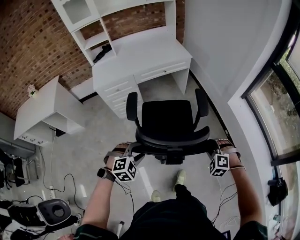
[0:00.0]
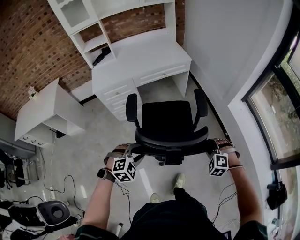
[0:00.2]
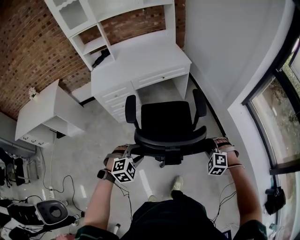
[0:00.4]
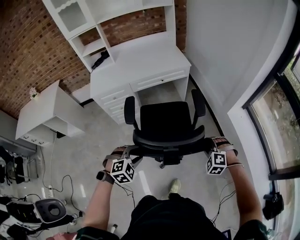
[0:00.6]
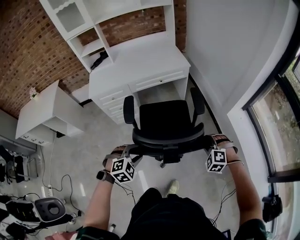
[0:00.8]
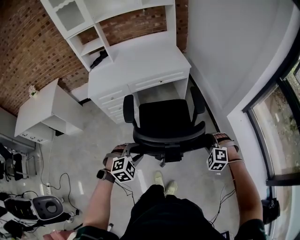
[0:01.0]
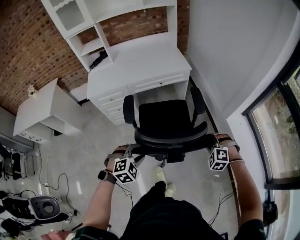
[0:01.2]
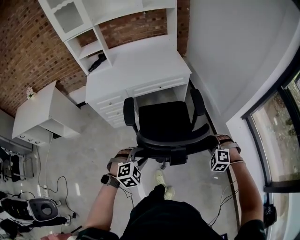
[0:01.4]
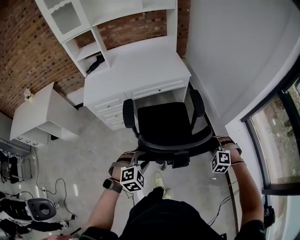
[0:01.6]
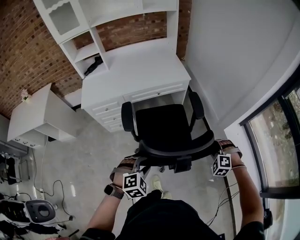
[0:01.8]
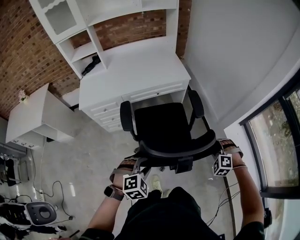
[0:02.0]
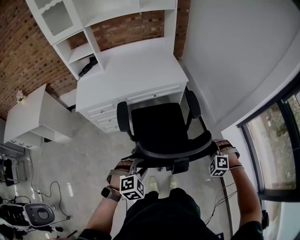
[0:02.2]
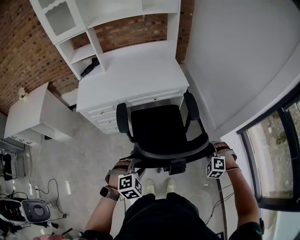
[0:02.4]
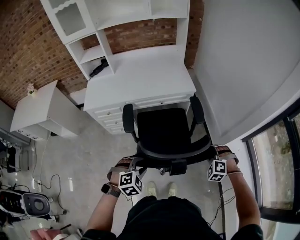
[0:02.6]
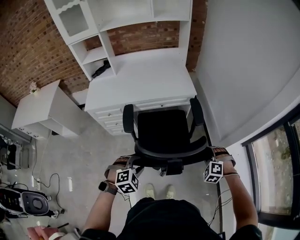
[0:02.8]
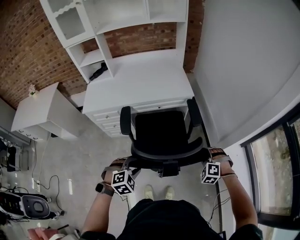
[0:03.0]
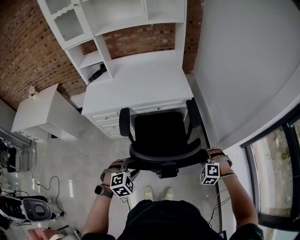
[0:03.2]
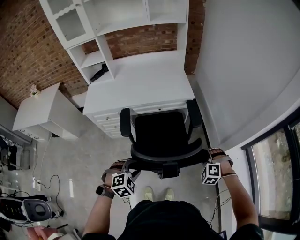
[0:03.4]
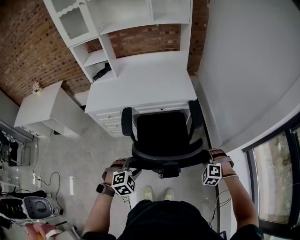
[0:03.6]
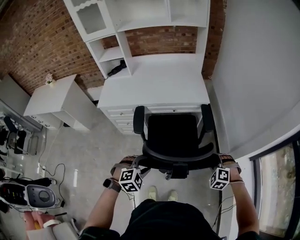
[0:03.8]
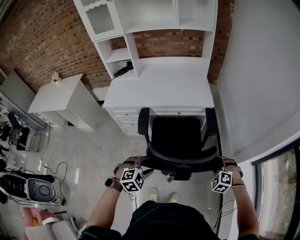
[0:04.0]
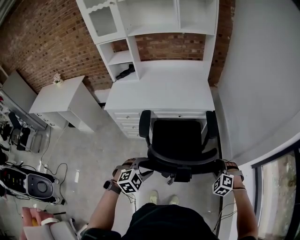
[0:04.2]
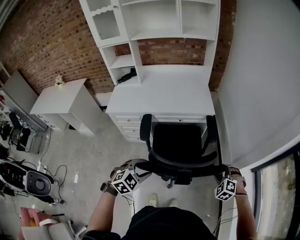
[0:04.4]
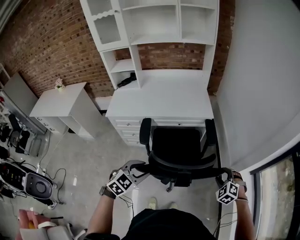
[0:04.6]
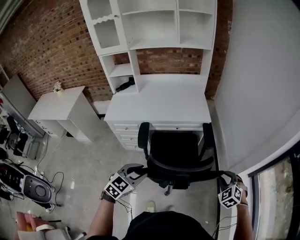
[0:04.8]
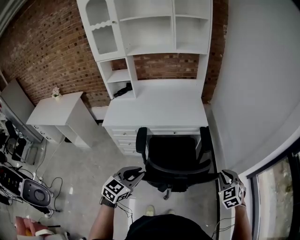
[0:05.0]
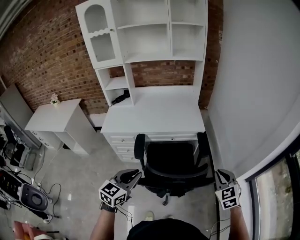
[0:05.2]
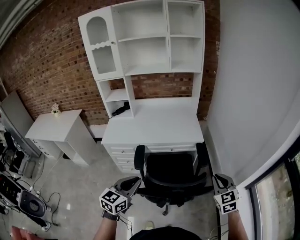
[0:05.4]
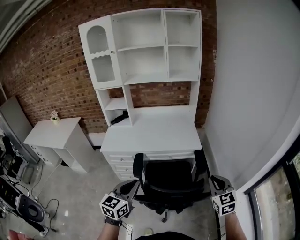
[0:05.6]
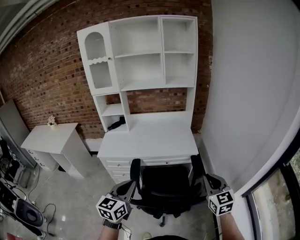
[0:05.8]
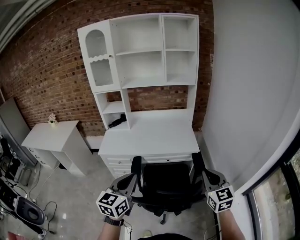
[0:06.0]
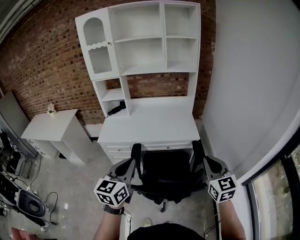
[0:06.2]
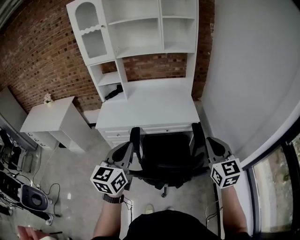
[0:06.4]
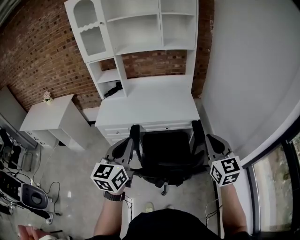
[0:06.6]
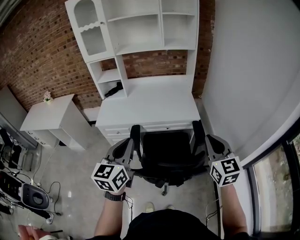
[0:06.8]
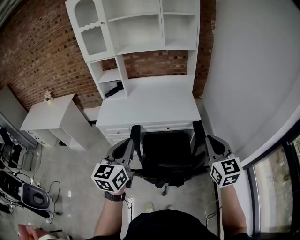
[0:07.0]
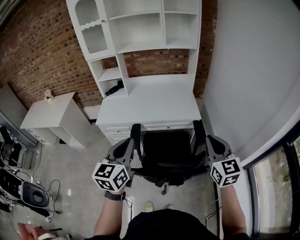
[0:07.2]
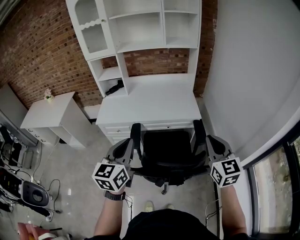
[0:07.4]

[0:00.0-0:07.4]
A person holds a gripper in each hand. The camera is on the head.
0:00.0 to 0:01.4: The left gripper heads forward and to the right, covering roughly 20 cm, while the right gripper heads forward, covering approximately 25 cm.
0:01.4 to 0:03.0: Both grippers move forward, roughly 15 cm.
0:03.0 to 0:04.4: The left gripper shifts approximately 5 cm upward.
0:04.4 to 0:06.0: The two grippers go approximately 25 cm upward. The right gripper points its fingers approximately 40 degrees further upward, and closes, while the left gripper points its fingers about 40 degrees further upward, and closes up.
0:06.0 to 0:07.4: The grippers make only small movements.

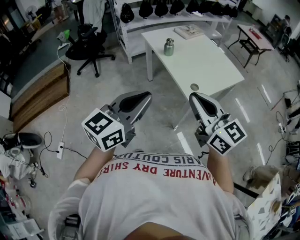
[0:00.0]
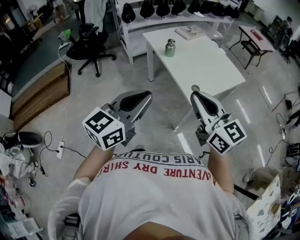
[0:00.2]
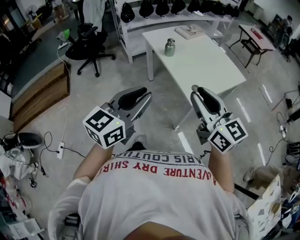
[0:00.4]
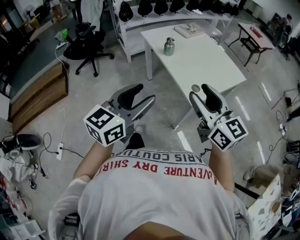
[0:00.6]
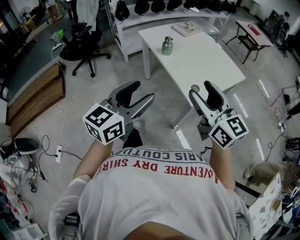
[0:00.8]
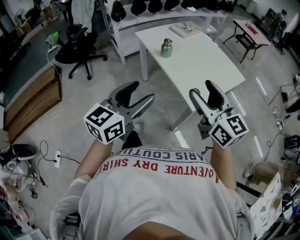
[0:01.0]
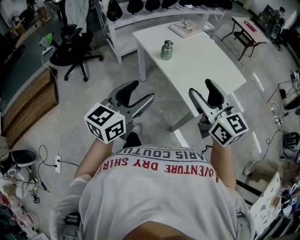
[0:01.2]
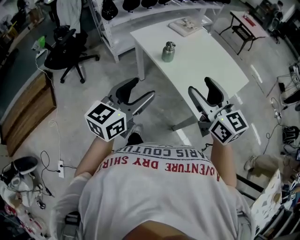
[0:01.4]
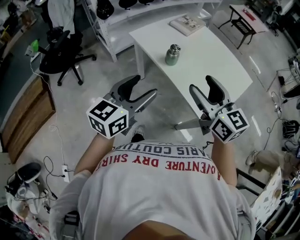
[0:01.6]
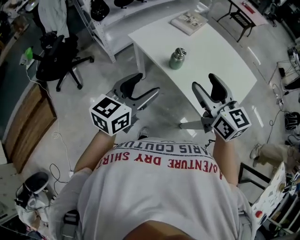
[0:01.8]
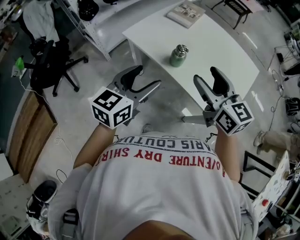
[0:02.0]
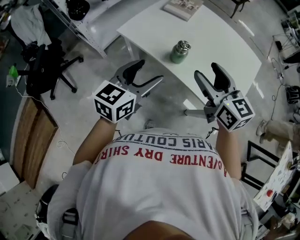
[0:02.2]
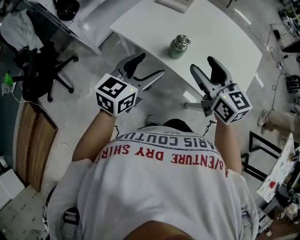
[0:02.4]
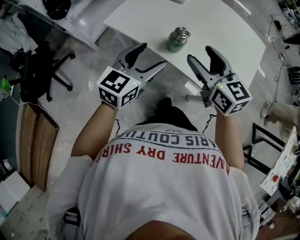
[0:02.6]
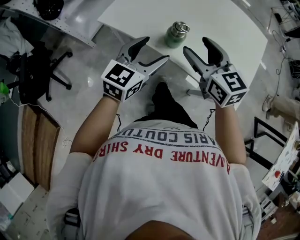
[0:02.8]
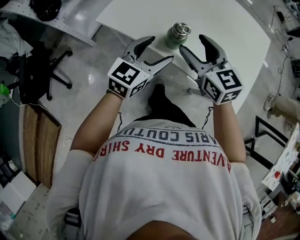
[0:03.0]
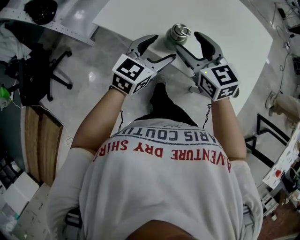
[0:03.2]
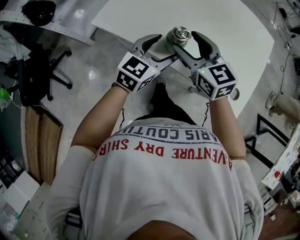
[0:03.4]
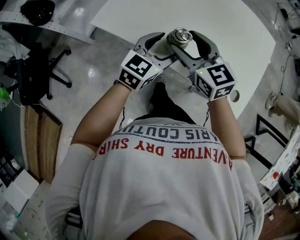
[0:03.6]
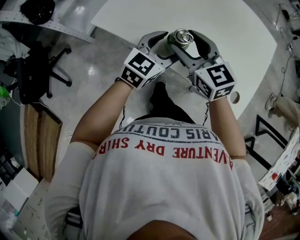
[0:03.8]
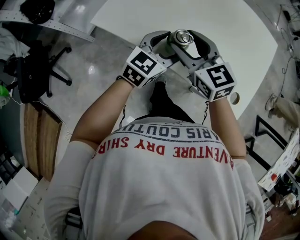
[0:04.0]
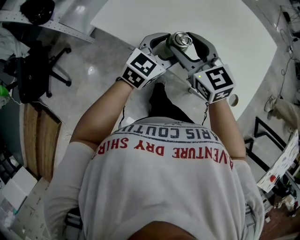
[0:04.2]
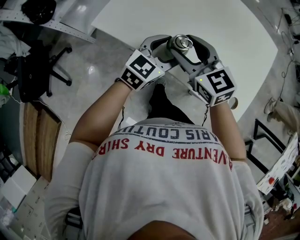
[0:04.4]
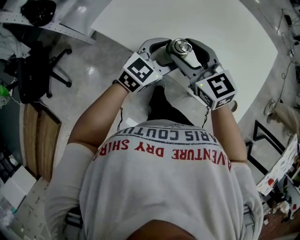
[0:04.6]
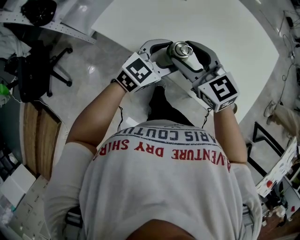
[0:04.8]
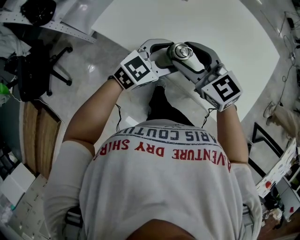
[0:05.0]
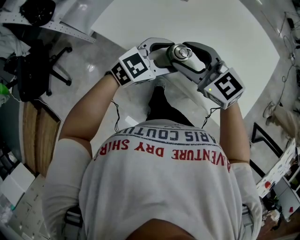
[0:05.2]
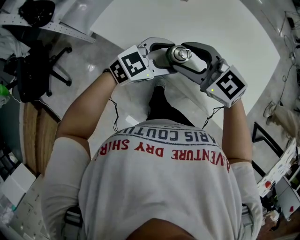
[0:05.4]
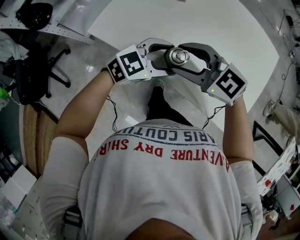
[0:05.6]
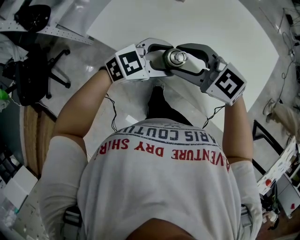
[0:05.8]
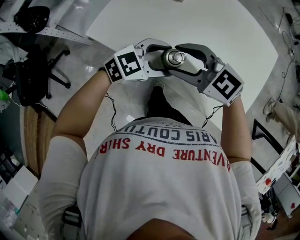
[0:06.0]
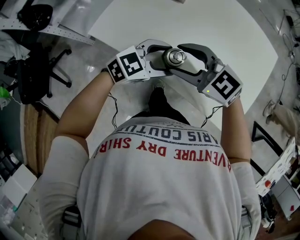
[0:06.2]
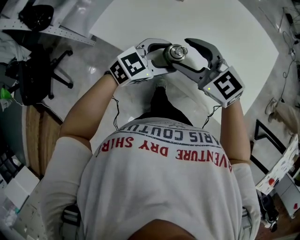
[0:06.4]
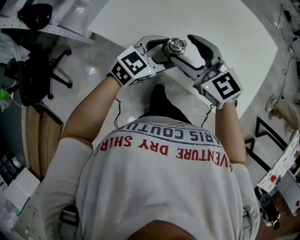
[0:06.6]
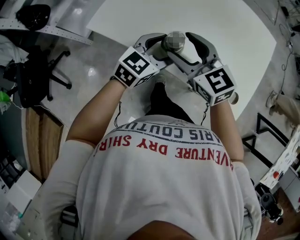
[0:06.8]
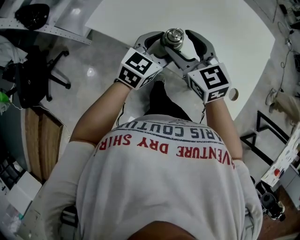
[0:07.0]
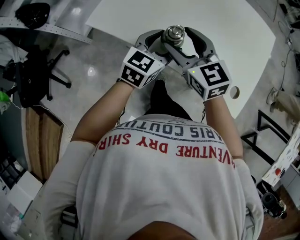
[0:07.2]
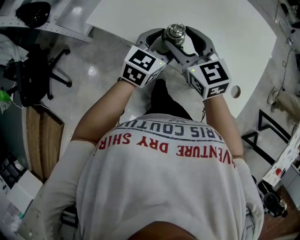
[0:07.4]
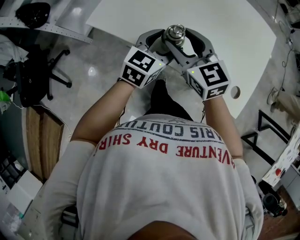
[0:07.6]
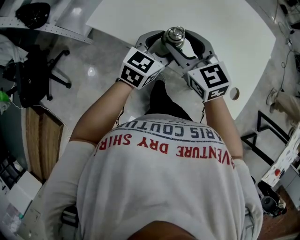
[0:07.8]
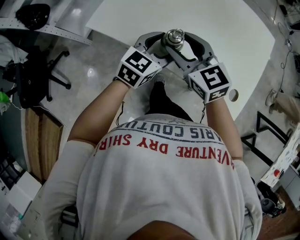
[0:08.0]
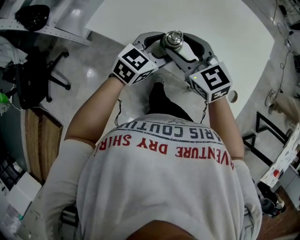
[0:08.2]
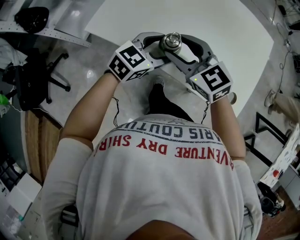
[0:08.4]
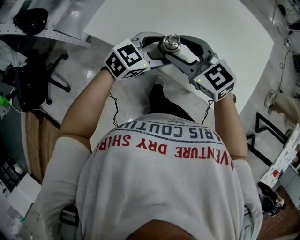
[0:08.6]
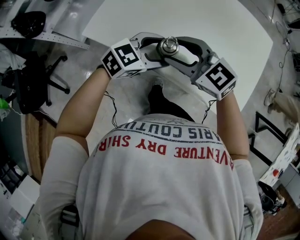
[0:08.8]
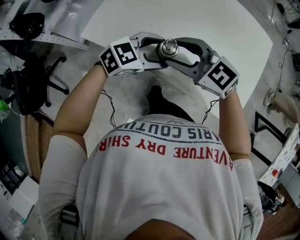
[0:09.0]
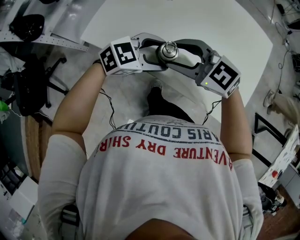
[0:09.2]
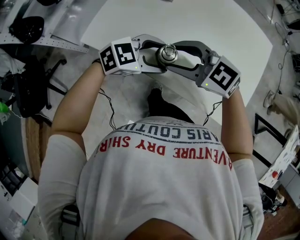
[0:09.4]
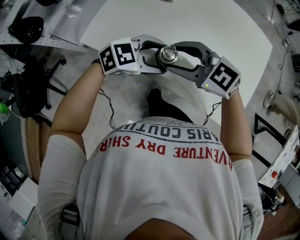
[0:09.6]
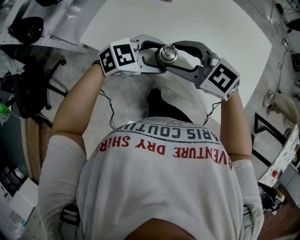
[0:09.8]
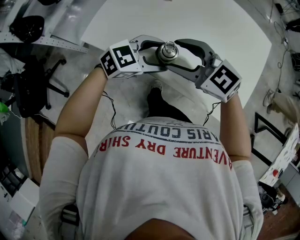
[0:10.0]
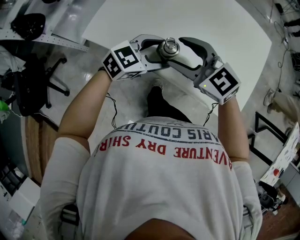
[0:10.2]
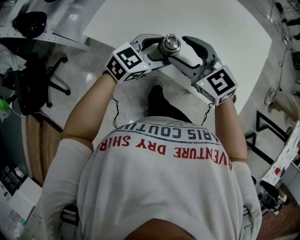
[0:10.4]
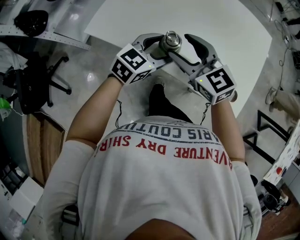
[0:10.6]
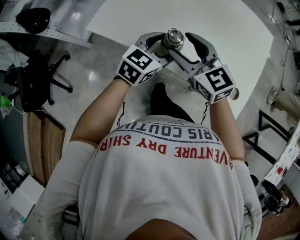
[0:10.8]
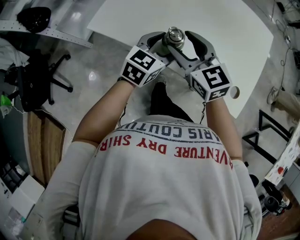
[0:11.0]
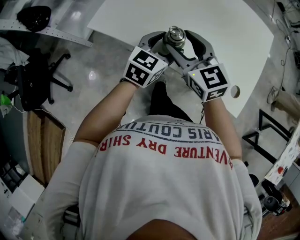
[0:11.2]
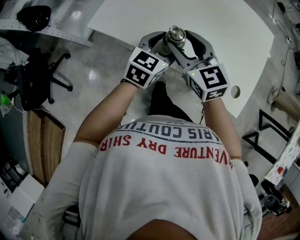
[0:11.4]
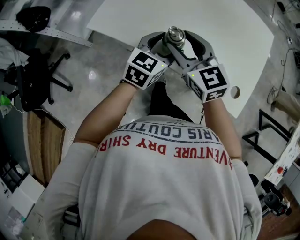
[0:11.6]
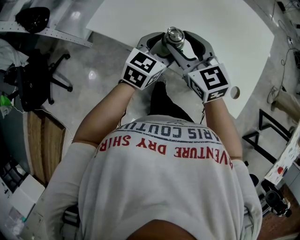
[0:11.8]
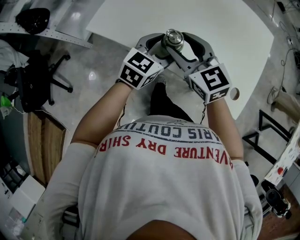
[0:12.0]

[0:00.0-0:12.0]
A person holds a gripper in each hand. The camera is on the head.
0:00.0 to 0:01.6: Both grippers travel together forward, some 30 cm. The left gripper opens, while the right gripper rotates approximately 20 degrees, and opens up.
0:01.6 to 0:03.0: The left gripper is displaced forward and downward by about 30 cm, and changes its angle by approximately 30 degrees, while the right gripper shifts roughly 25 cm forward, downward and to the left, and turns by roughly 20 degrees.
0:03.0 to 0:04.4: The left gripper is displaced forward by roughly 5 cm, while the right gripper shifts by about 5 cm.
0:04.4 to 0:06.0: The left gripper rotates approximately 30 degrees. The right gripper rotates about 30 degrees.
0:06.0 to 0:07.6: The right gripper rotates roughly 40 degrees, while the left gripper swivels roughly 30 degrees.
0:07.6 to 0:09.0: The right gripper changes its angle by about 30 degrees. Meanwhile the left gripper swivels roughly 40 degrees.
0:09.0 to 0:10.4: The grippers move only a little.

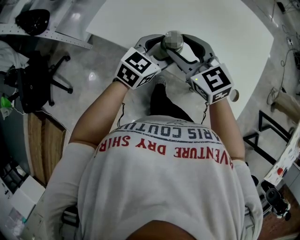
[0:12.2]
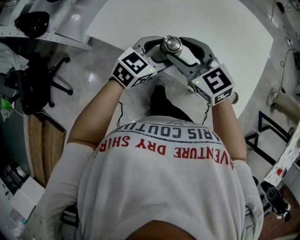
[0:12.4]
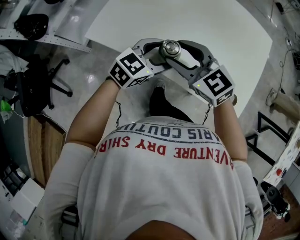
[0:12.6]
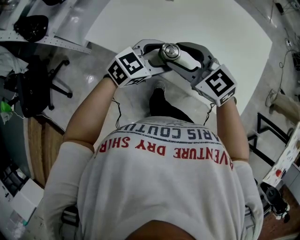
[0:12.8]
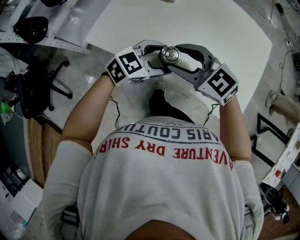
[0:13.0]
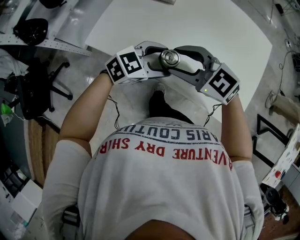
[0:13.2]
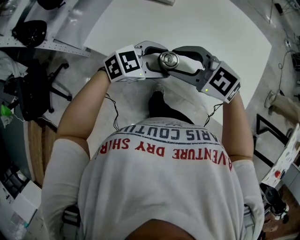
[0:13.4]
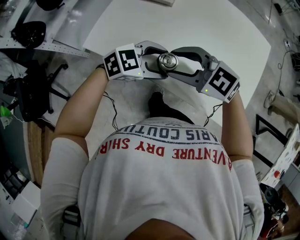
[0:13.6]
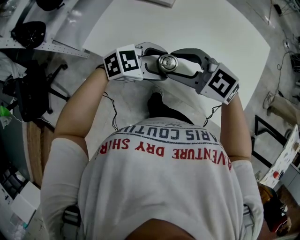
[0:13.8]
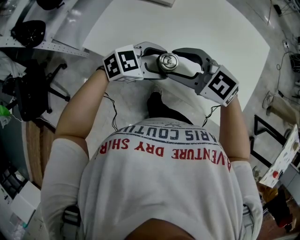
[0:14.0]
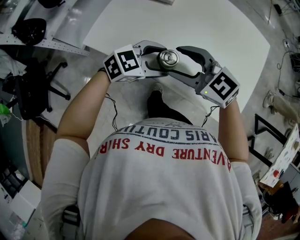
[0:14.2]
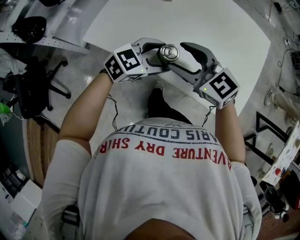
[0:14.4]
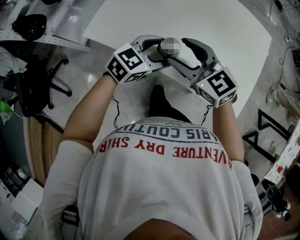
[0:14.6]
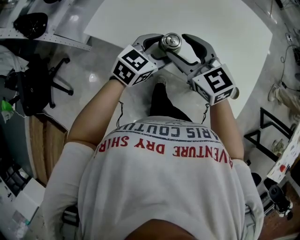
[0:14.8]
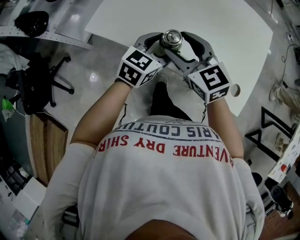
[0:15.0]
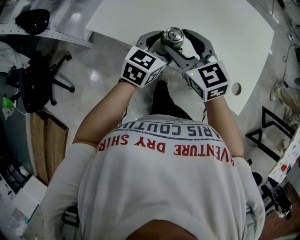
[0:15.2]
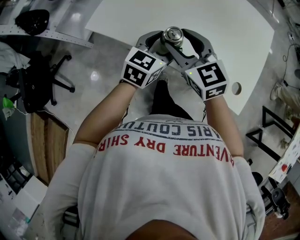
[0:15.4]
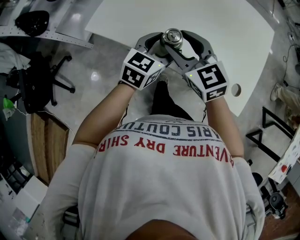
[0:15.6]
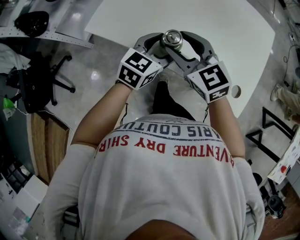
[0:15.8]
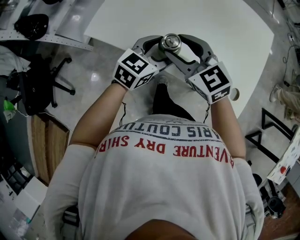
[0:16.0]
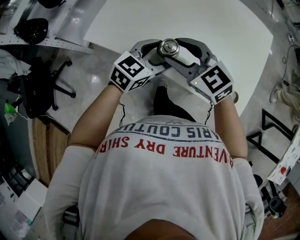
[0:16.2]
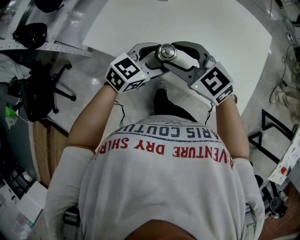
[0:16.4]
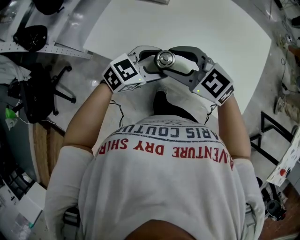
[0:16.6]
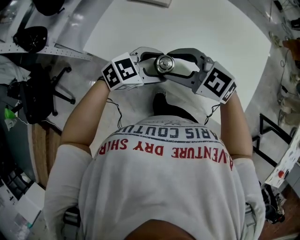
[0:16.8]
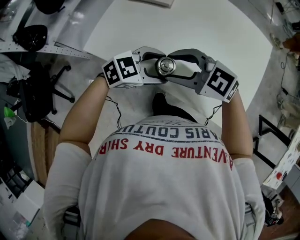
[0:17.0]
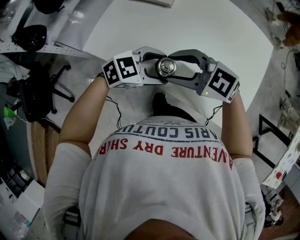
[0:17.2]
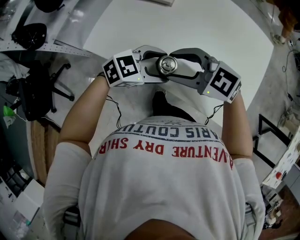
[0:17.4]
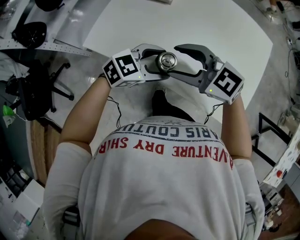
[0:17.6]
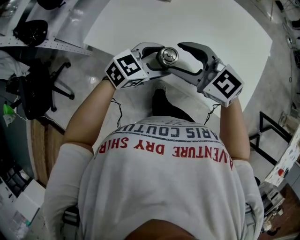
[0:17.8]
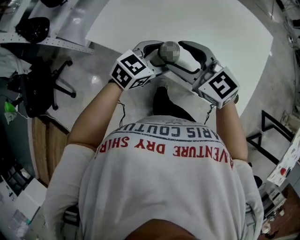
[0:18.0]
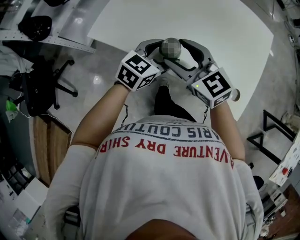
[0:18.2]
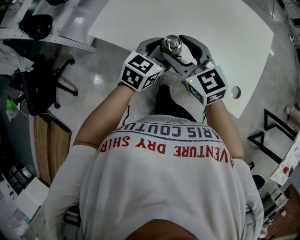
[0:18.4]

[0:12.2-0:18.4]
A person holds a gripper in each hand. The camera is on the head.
0:12.2 to 0:13.8: The right gripper rotates roughly 30 degrees, while the left gripper changes its angle by approximately 40 degrees.
0:13.8 to 0:15.4: The right gripper changes its angle by some 40 degrees; the left gripper rotates about 50 degrees.
0:15.4 to 0:16.8: The left gripper turns by approximately 40 degrees. The right gripper rotates roughly 40 degrees.
0:16.8 to 0:18.4: The right gripper rotates some 40 degrees. The left gripper turns by about 30 degrees.
